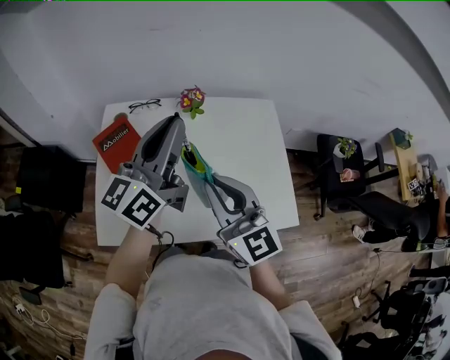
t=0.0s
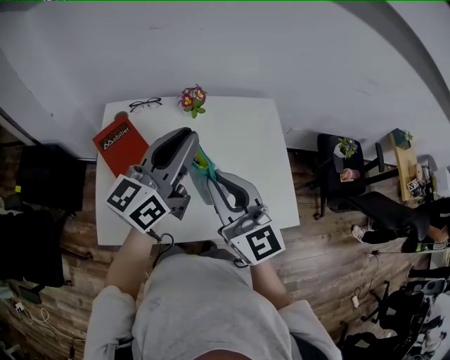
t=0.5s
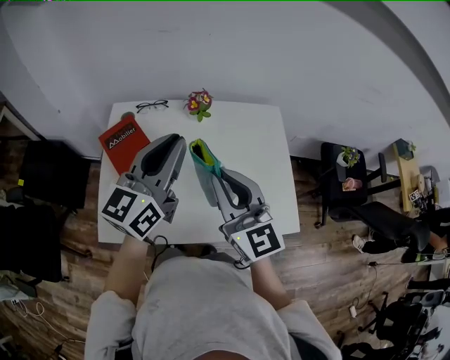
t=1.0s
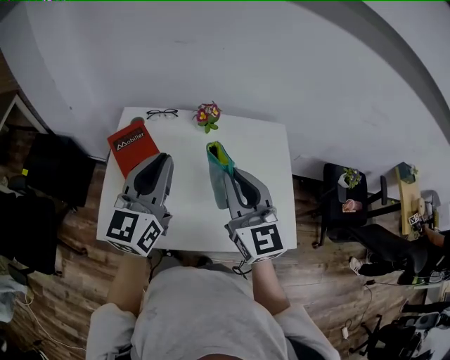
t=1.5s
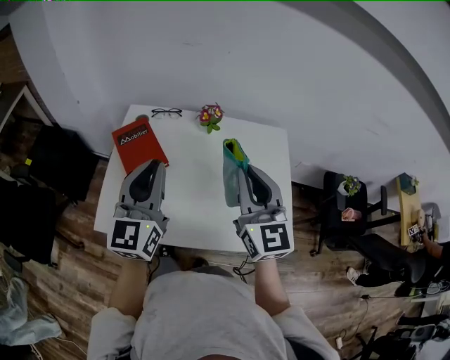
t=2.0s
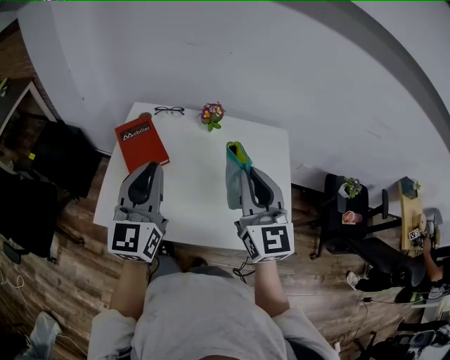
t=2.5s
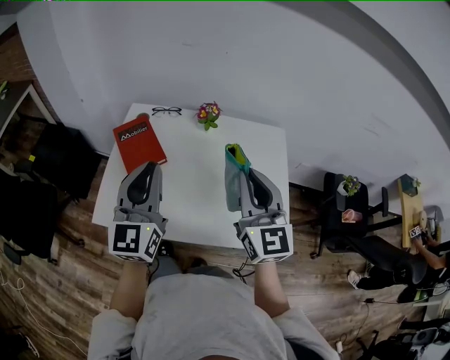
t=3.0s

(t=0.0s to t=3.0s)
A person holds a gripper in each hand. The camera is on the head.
t=0.0s - t=1.5s: The left gripper ends up approximately 5 cm from where it was, and turns by roughly 30 degrees. Meanwhile the right gripper shifts by approximately 5 cm.
t=1.5s - t=3.0s: The left gripper is displaced backward by some 5 cm. Meanwhile the right gripper moves to the right, some 5 cm.

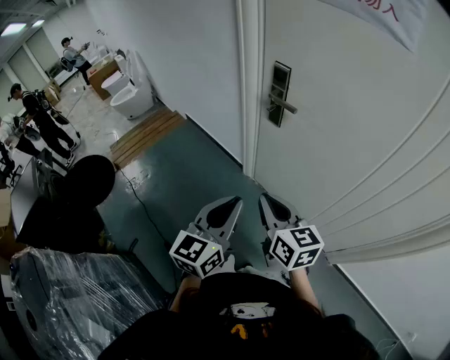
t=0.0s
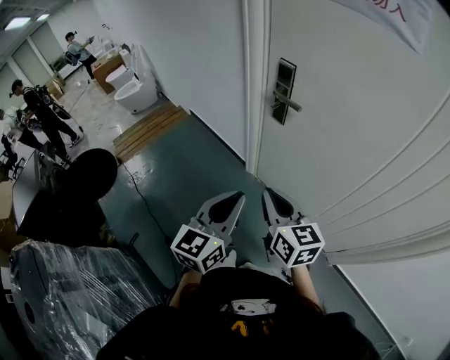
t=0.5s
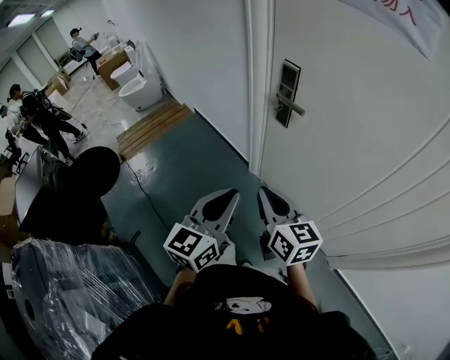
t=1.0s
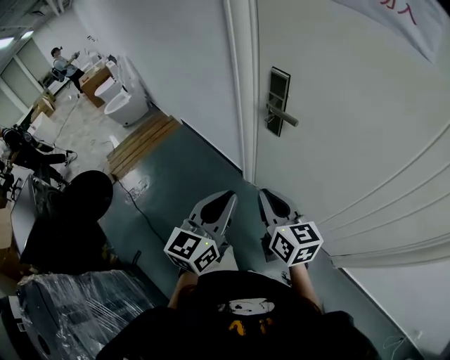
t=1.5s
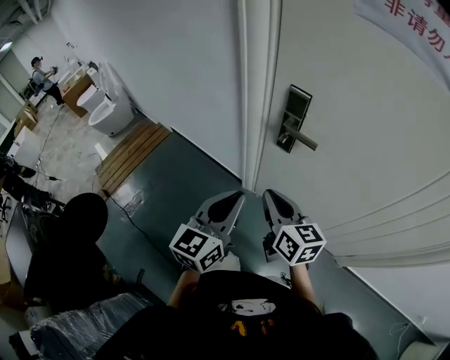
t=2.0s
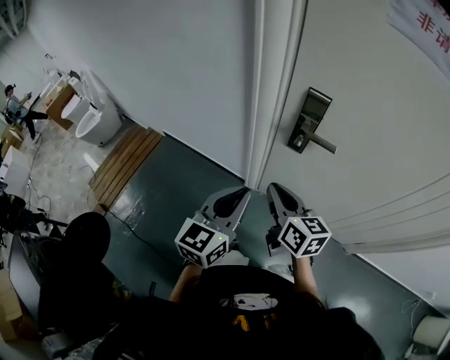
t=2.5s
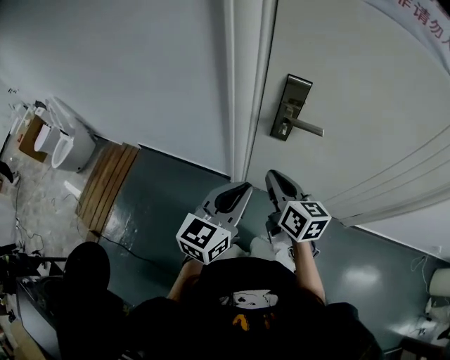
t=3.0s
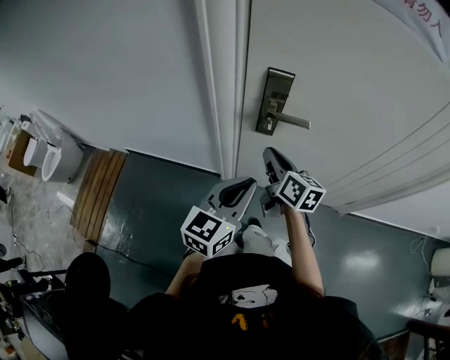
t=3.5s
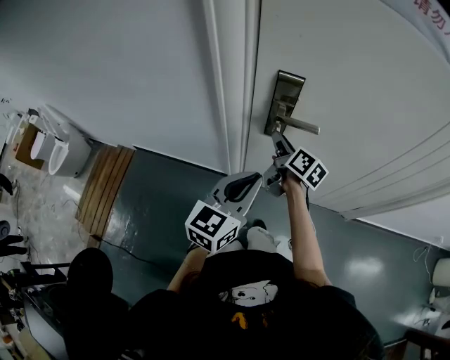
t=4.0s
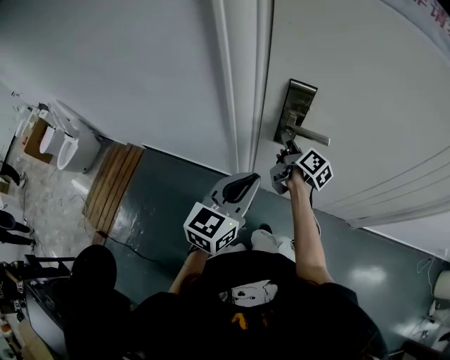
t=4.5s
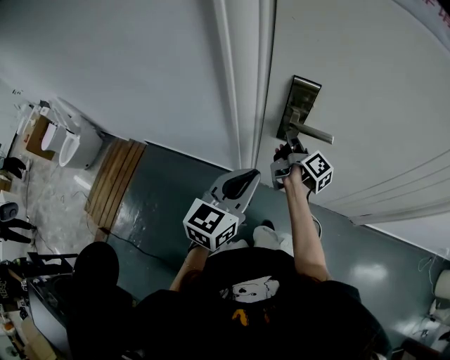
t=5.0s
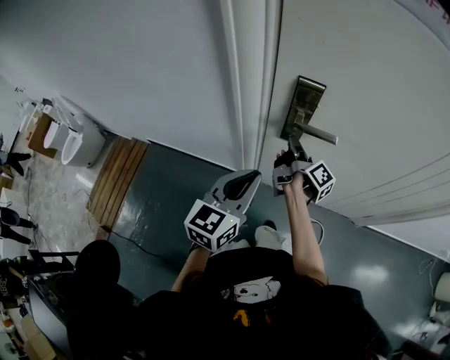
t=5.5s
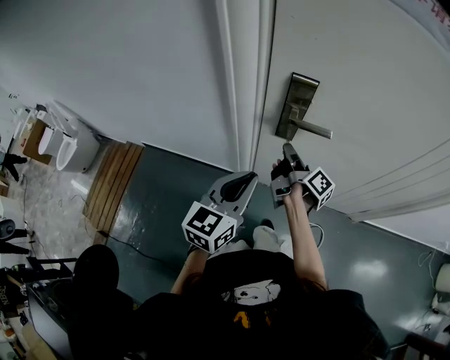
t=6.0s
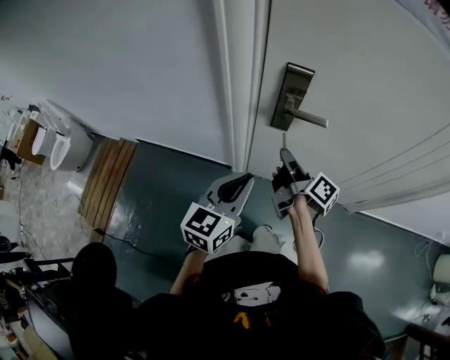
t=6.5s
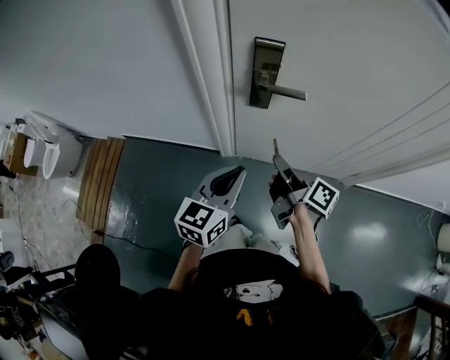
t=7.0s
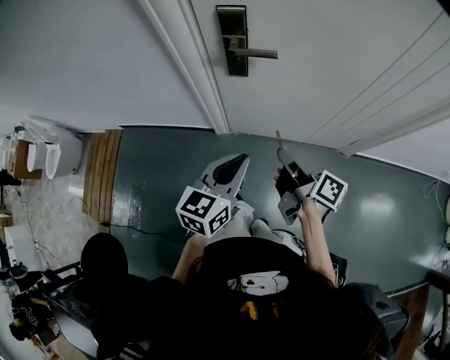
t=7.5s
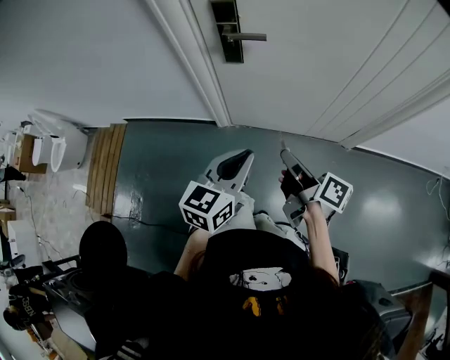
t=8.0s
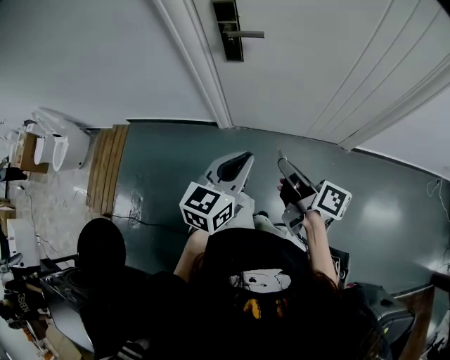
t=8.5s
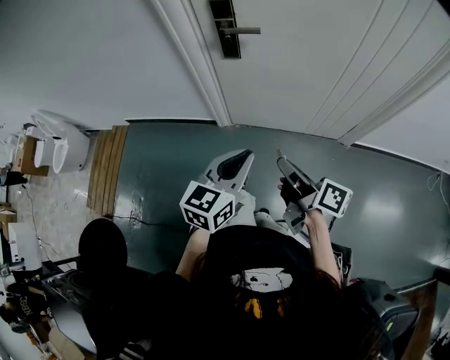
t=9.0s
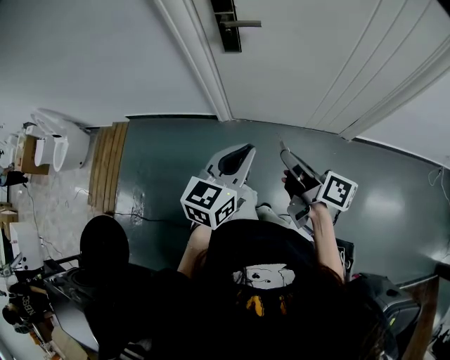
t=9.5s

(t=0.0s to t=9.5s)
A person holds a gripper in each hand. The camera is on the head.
t=0.0s - t=2.0s: Both grippers travel together forward, about 20 cm.
t=2.0s - t=4.0s: The left gripper moves roughly 10 cm, and turns by about 30 degrees. The right gripper changes place by approximately 25 cm, turns by roughly 50 degrees, and opens.
t=4.0s - t=5.5s: The right gripper changes its angle by approximately 40 degrees, and closes.
t=5.5s - t=7.5s: The right gripper goes roughly 30 cm backward and to the right. Meanwhile the left gripper moves backward and to the right, approximately 15 cm.
t=7.5s - t=9.5s: Both grippers travel together backward, roughly 15 cm.

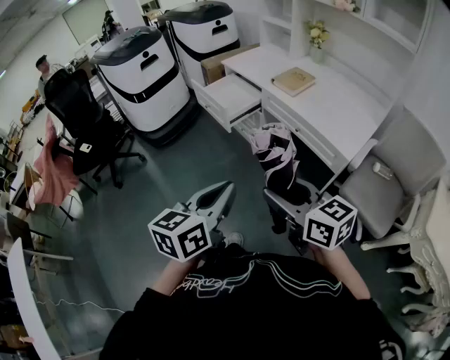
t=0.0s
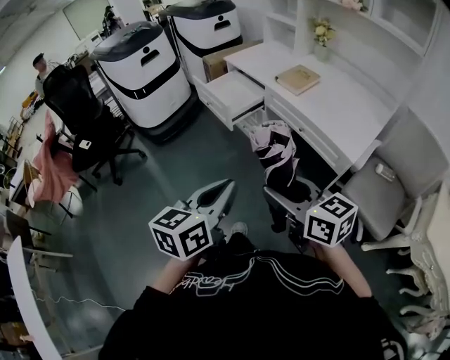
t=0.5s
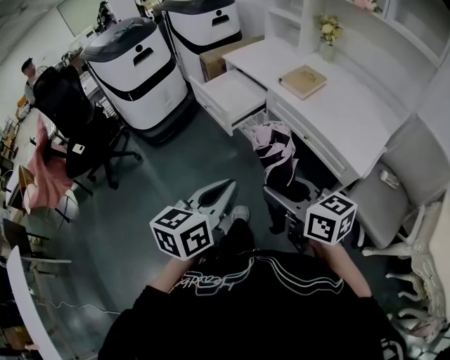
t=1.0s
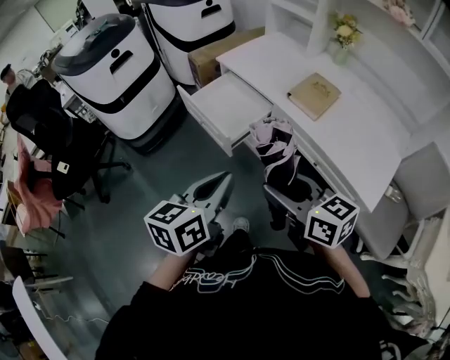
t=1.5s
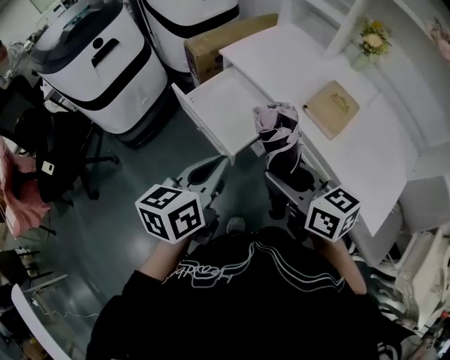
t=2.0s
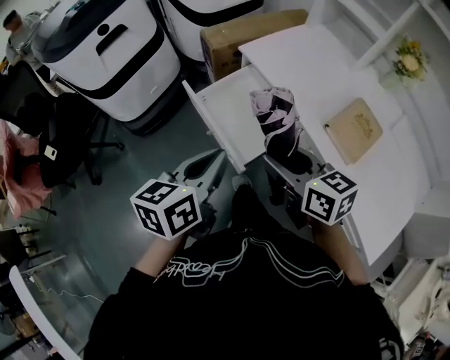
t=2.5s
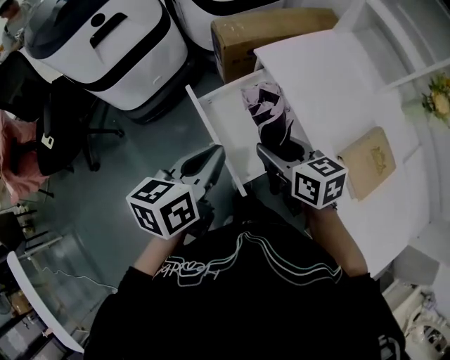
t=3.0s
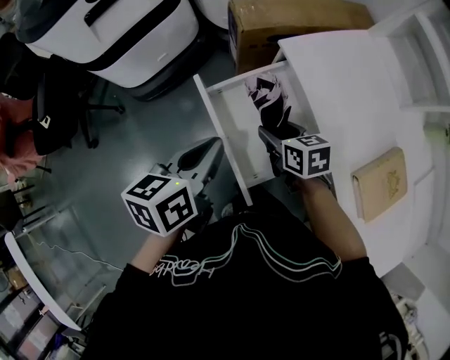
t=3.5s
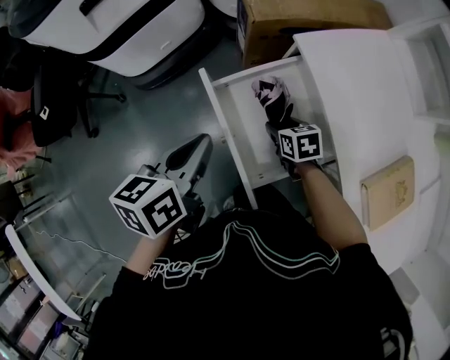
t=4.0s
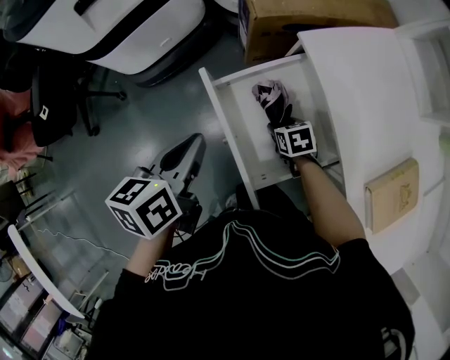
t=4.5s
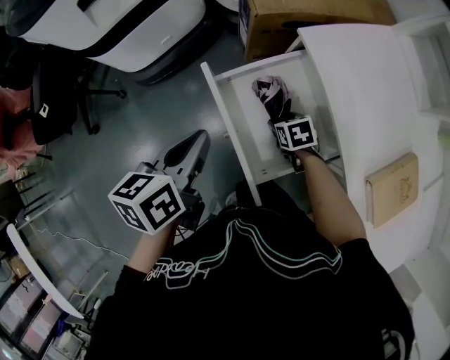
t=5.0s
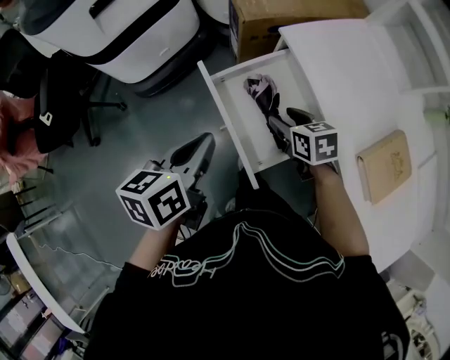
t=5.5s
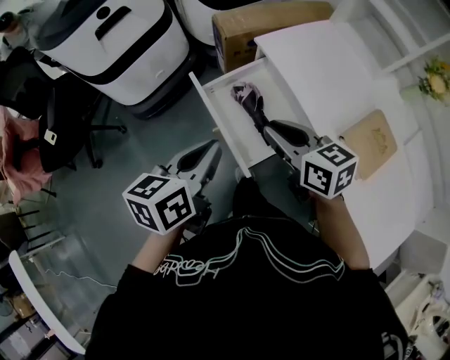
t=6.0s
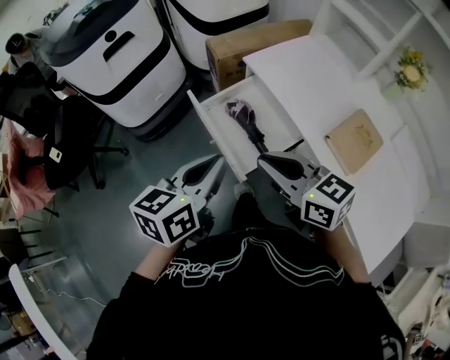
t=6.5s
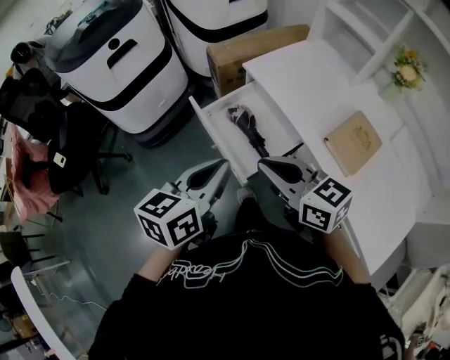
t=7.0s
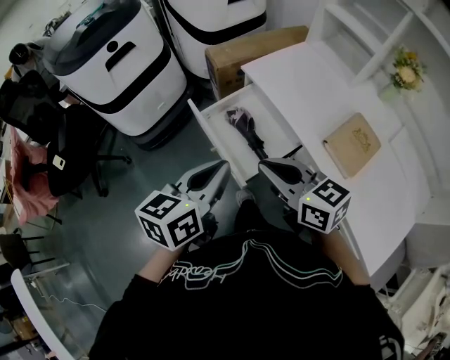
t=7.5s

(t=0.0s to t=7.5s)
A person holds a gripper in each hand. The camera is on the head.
t=0.0s - t=2.0s: The pair of grippers is taken forward, approximately 50 cm.
t=2.0s - t=4.0s: The right gripper moves downward and forward, roughly 50 cm, and angles its fingers downward, by about 40 degrees. The left gripper shifts about 35 cm forward and downward, and turns by about 30 degrees.
t=4.0s - t=5.5s: The left gripper moves backward, some 5 cm, while the right gripper heads upward, covering roughly 10 cm.
t=5.5s - t=7.5s: The right gripper is displaced upward and backward by roughly 30 cm, tilts its fingers roughly 30 degrees upward, and closes; the left gripper goes some 20 cm backward, upward and to the right, and turns by about 20 degrees.

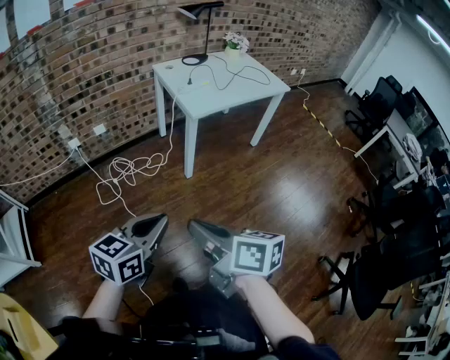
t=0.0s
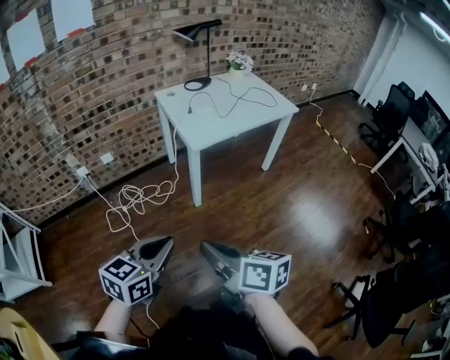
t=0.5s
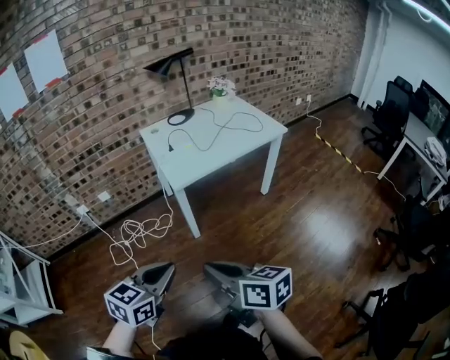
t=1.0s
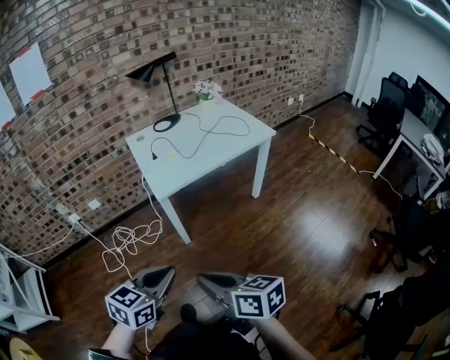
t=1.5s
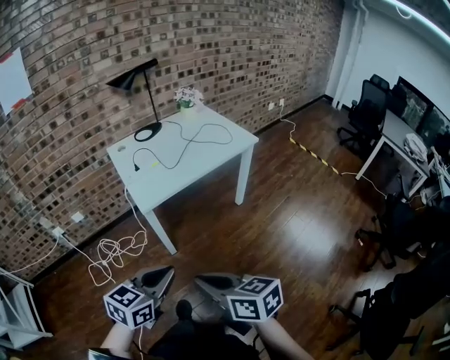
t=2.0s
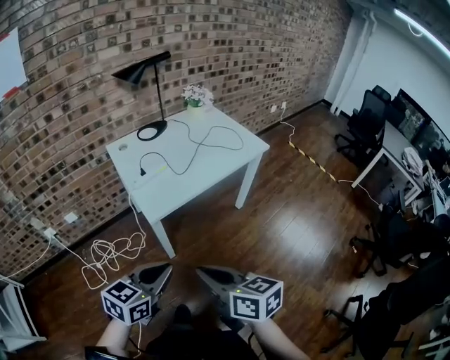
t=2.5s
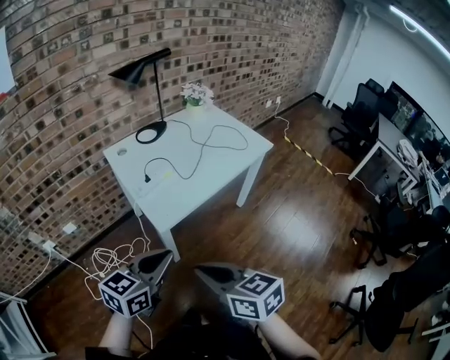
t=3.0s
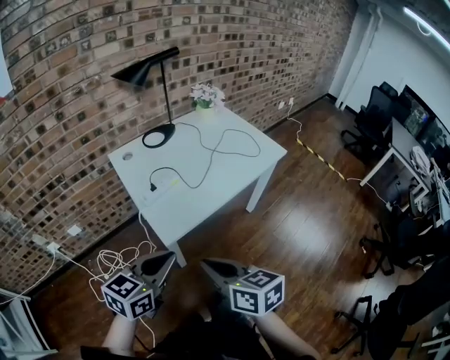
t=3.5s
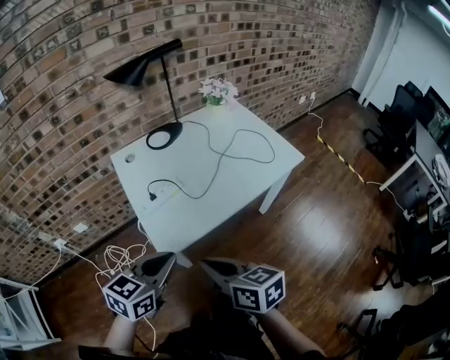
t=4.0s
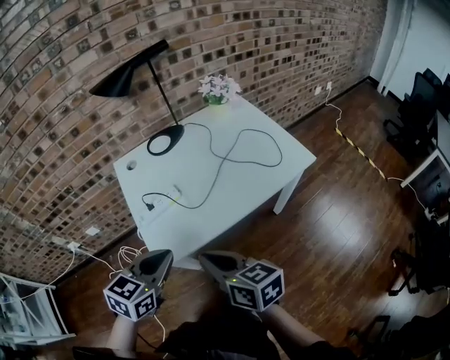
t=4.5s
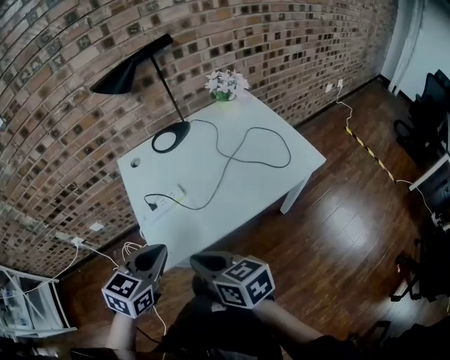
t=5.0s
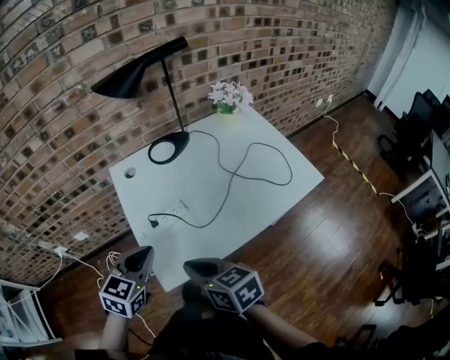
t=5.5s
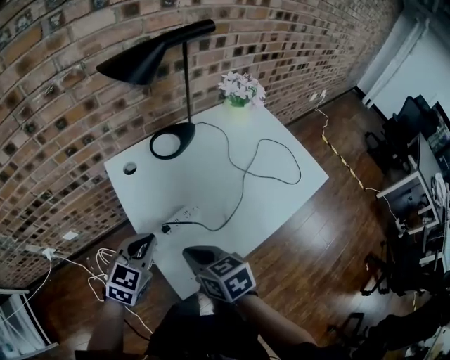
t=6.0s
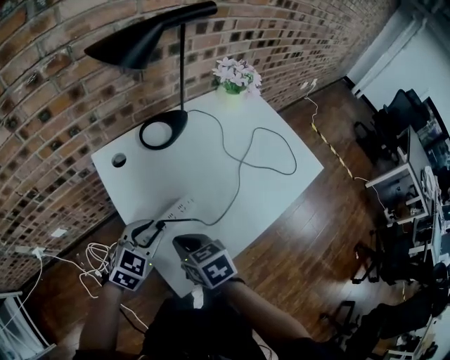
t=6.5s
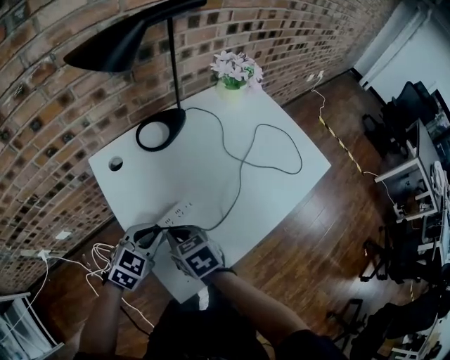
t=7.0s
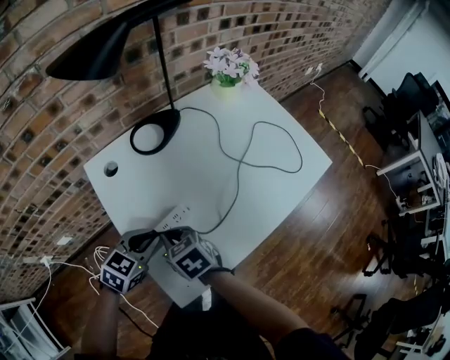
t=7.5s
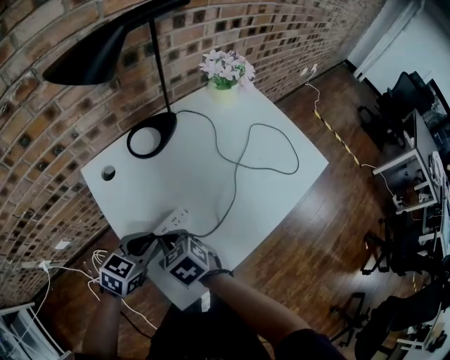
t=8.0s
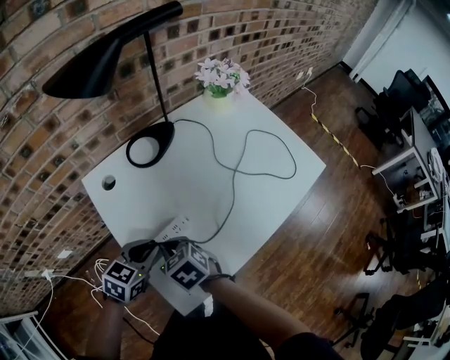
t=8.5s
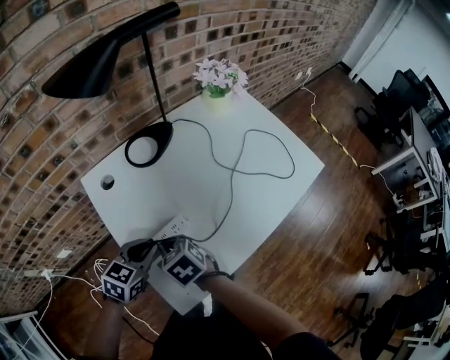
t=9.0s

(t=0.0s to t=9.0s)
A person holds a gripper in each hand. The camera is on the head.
t=0.0s - t=2.0s: The grippers both shift to the right and forward by approximately 30 cm.
t=2.0s - t=4.5s: Both grippers move forward, about 35 cm.
t=4.5s - t=7.0s: The left gripper travels forward and downward by some 25 cm, and swivels about 20 degrees, while the right gripper shifts some 30 cm forward, downward and to the left, and turns by about 30 degrees.
t=7.0s - t=9.0s: There are only small adjustments of the grippers.
